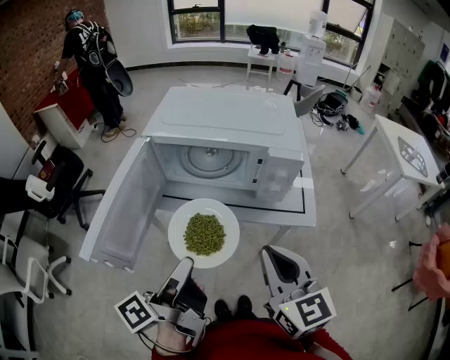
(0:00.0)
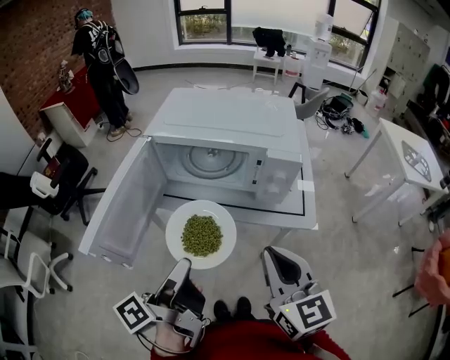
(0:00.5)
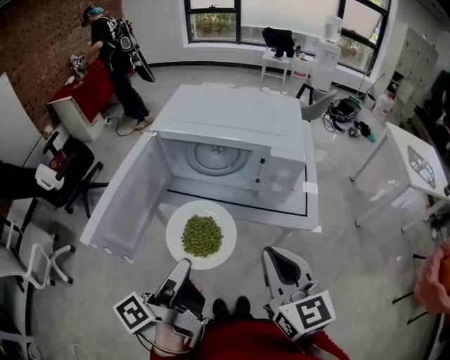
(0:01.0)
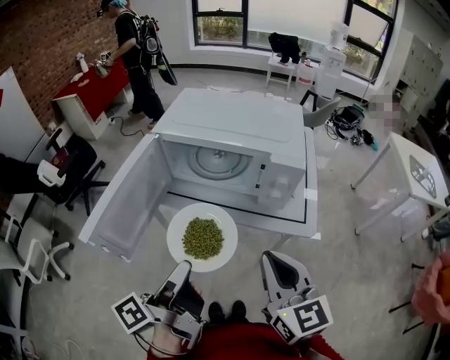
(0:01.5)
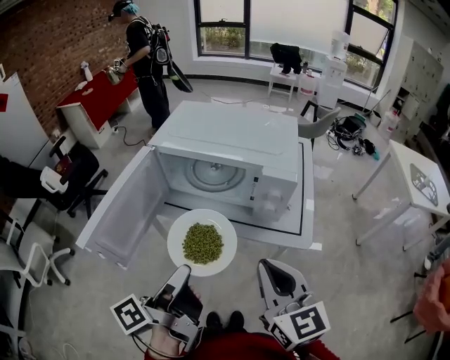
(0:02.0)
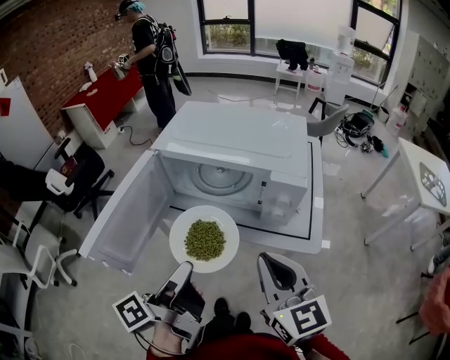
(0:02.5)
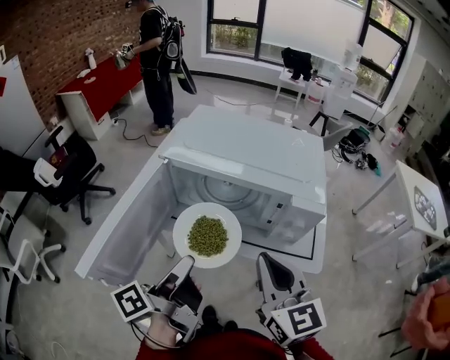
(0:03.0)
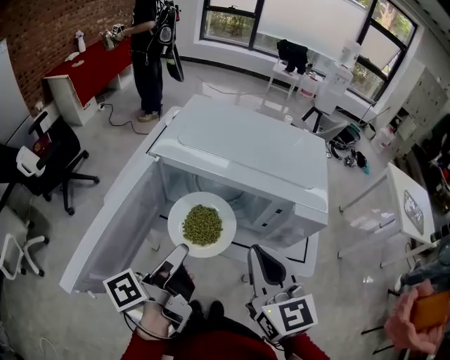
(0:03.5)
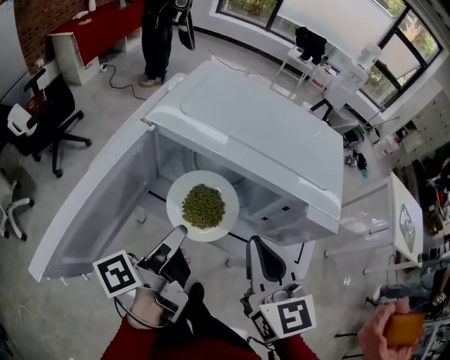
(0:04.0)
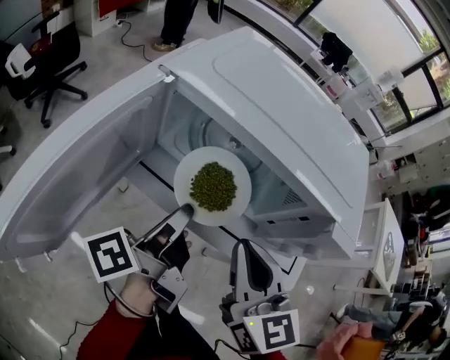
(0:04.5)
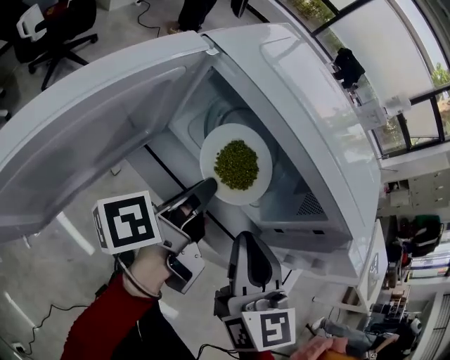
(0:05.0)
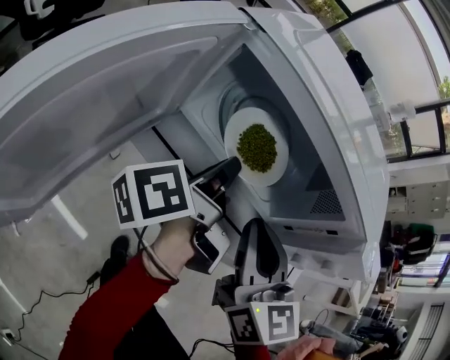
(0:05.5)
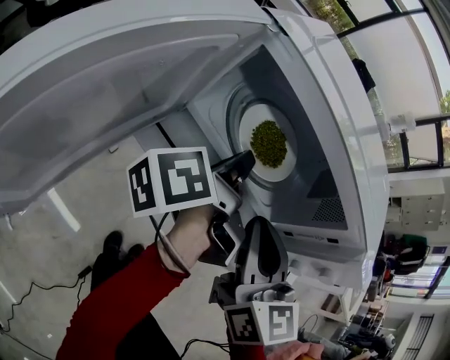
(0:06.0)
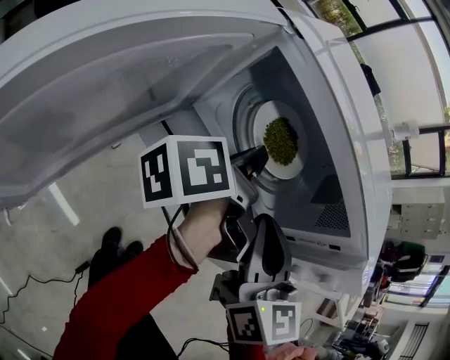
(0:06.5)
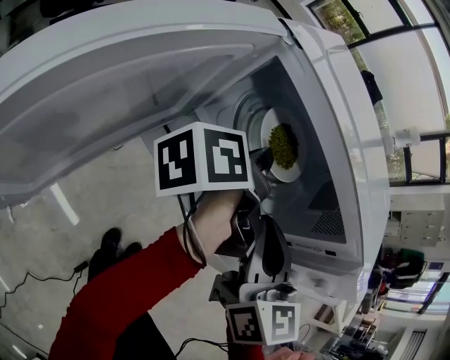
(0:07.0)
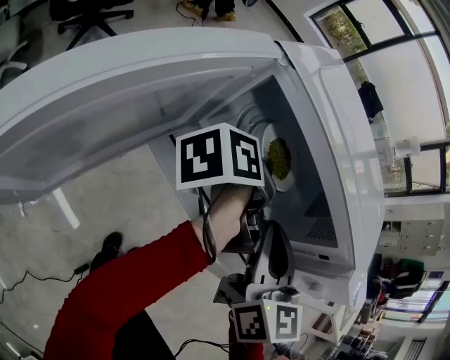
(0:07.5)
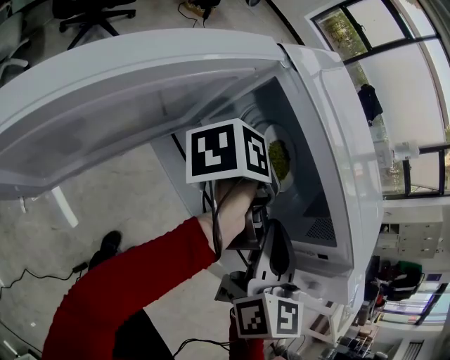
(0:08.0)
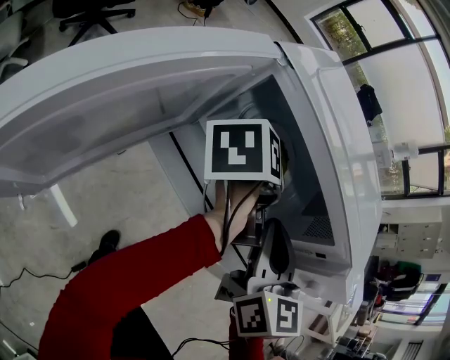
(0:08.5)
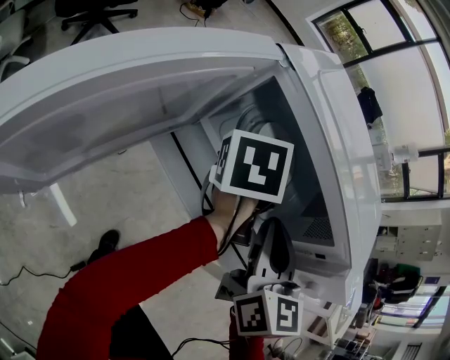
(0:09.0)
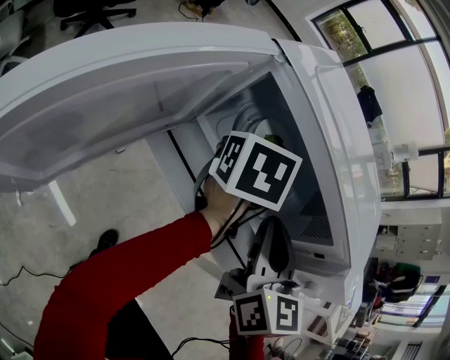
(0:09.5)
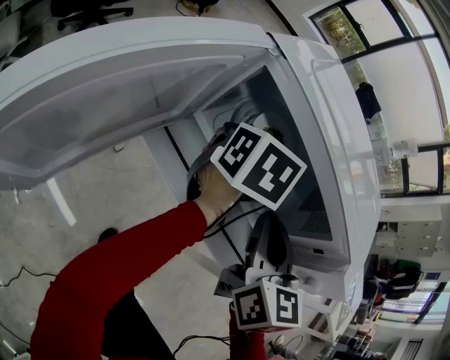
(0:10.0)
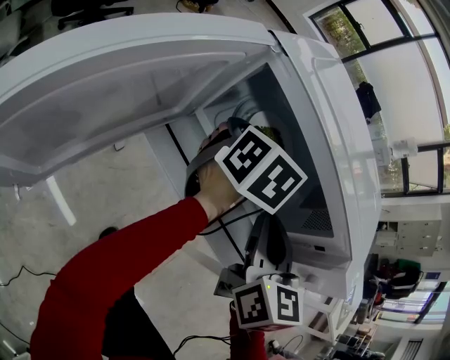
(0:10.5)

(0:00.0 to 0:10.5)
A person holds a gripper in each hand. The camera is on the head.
0:00.0 - 0:02.0: The grippers move only a little.
0:02.0 - 0:04.0: The two grippers go about 15 cm forward.
0:04.0 - 0:06.5: The right gripper heads downward and forward, covering approximately 10 cm. The left gripper goes roughly 15 cm forward and downward.
0:06.5 - 0:08.5: The left gripper changes its angle by some 30 degrees.
0:08.5 - 0:10.5: The left gripper rotates around the line of its fingers by roughly 50 degrees, clockwise from behind, and opens up.

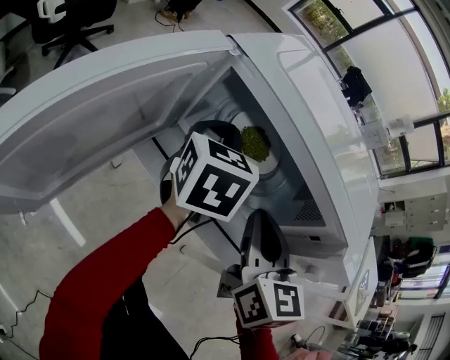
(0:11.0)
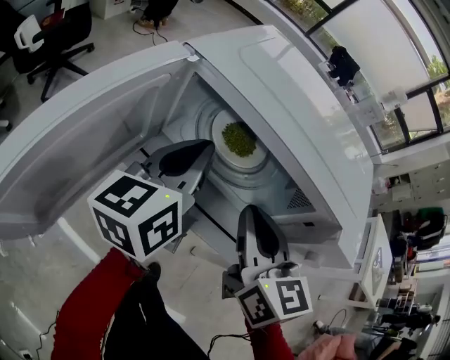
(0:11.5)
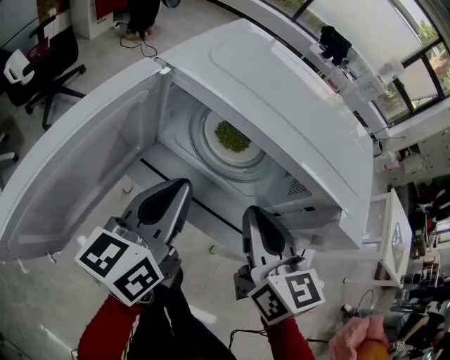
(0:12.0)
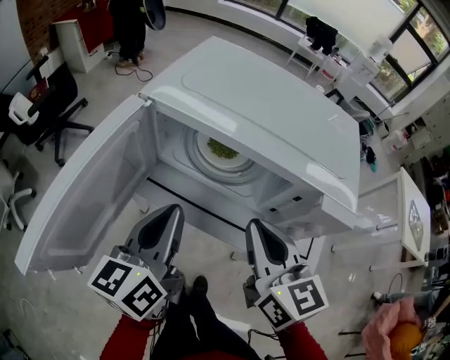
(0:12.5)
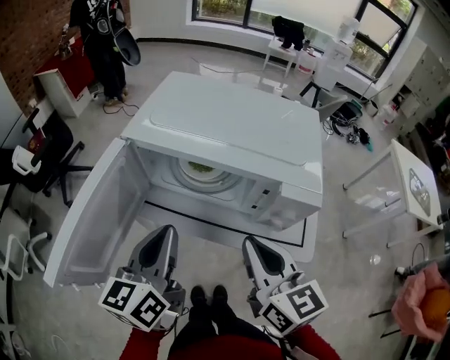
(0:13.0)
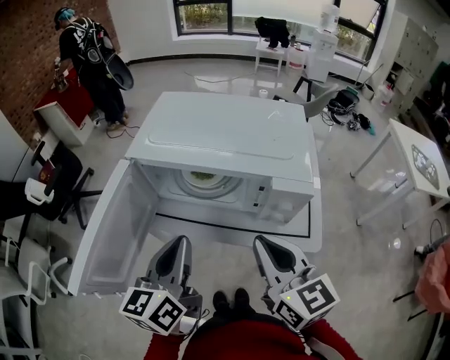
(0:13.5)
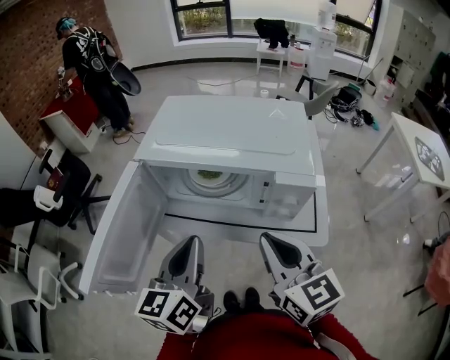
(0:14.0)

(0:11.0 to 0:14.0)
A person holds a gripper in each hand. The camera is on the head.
0:11.0 - 0:12.5: The right gripper travels backward by some 5 cm. Meanwhile the left gripper moves backward, some 20 cm, and swivels approximately 30 degrees.
0:12.5 - 0:14.0: The grippers both shift backward by approximately 5 cm.

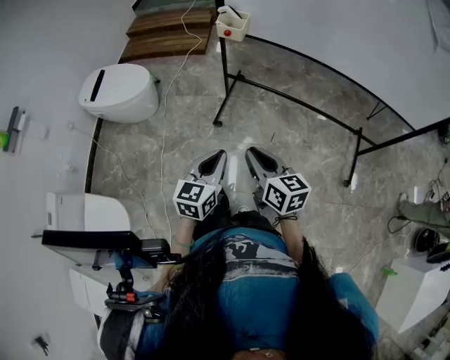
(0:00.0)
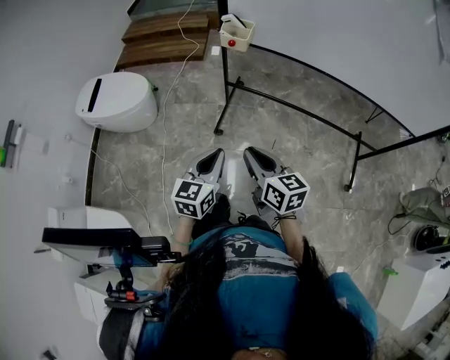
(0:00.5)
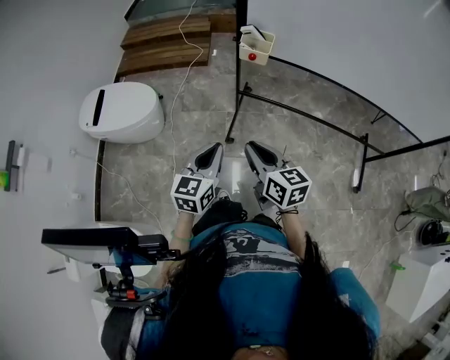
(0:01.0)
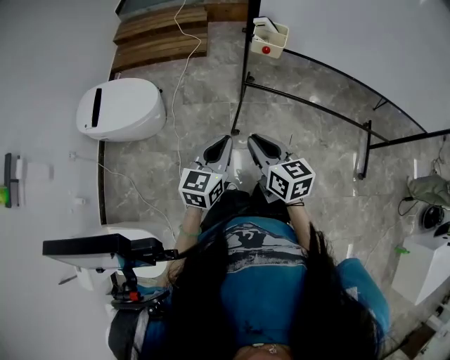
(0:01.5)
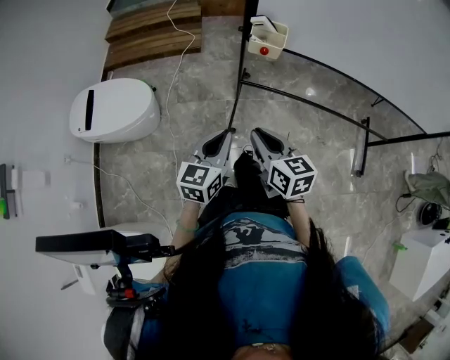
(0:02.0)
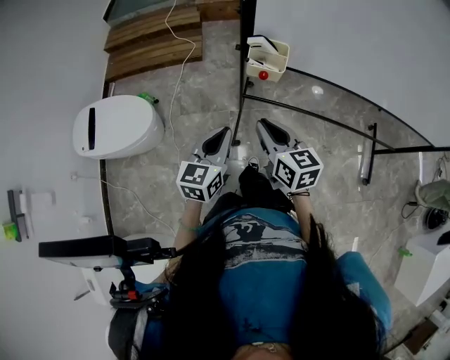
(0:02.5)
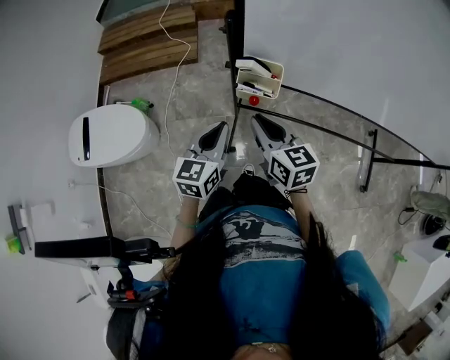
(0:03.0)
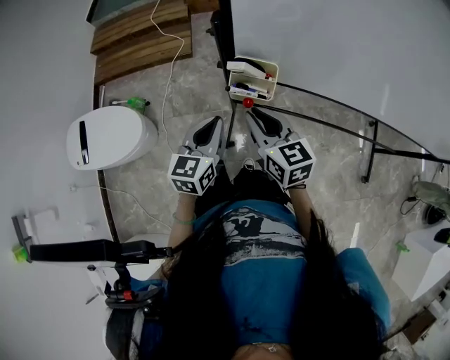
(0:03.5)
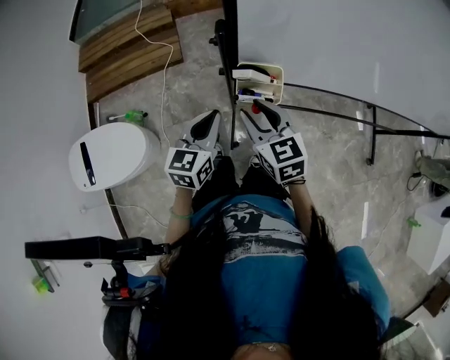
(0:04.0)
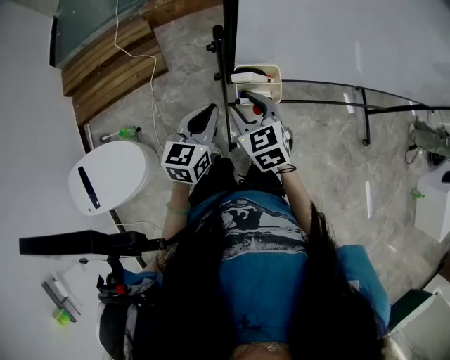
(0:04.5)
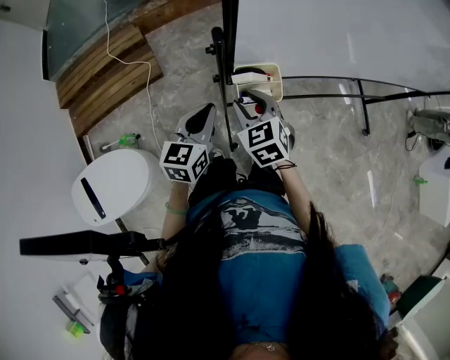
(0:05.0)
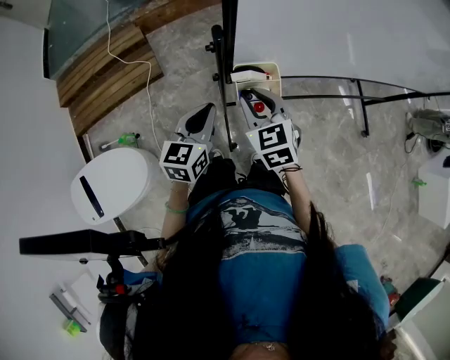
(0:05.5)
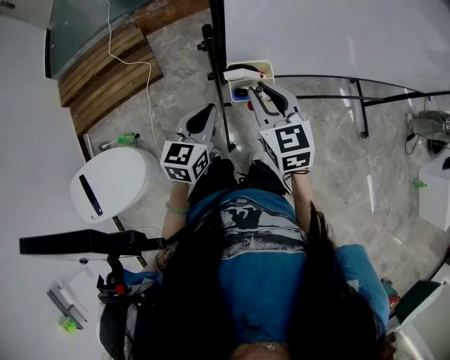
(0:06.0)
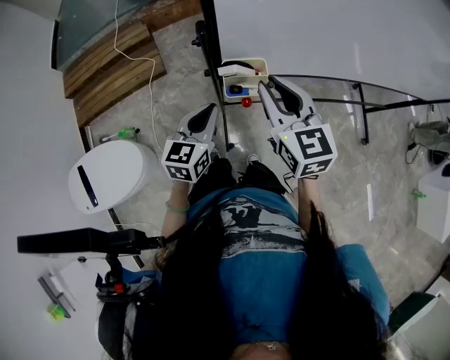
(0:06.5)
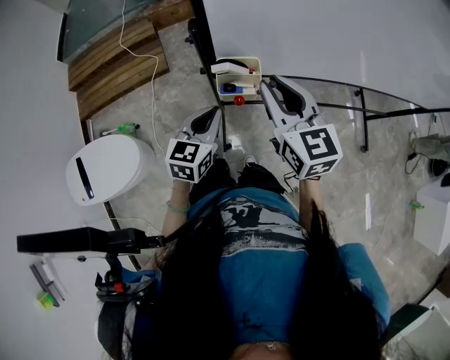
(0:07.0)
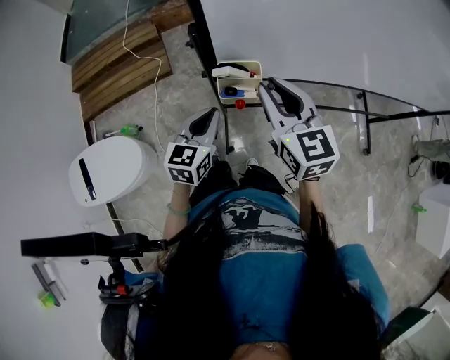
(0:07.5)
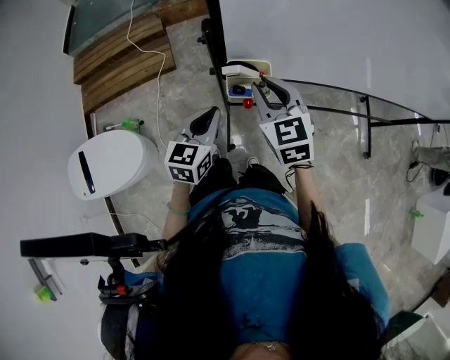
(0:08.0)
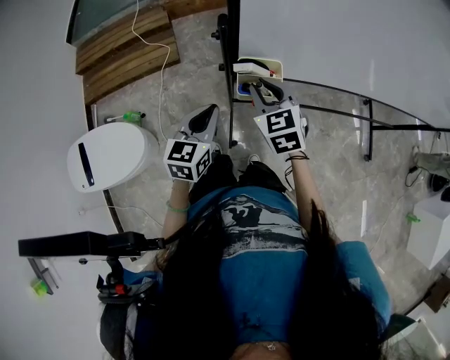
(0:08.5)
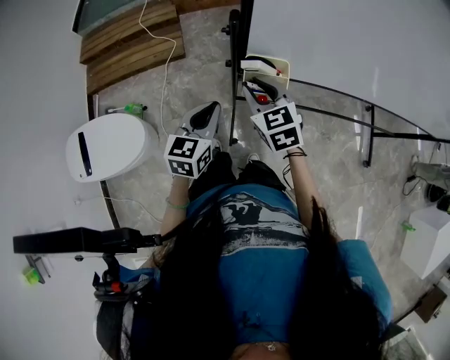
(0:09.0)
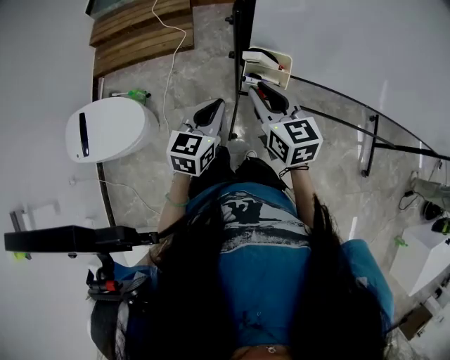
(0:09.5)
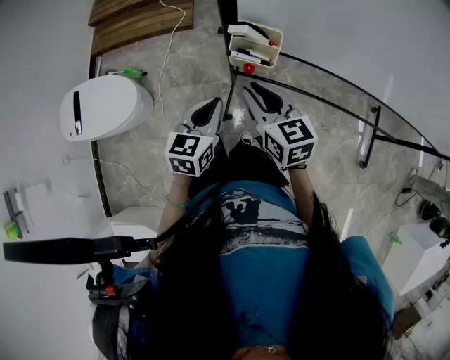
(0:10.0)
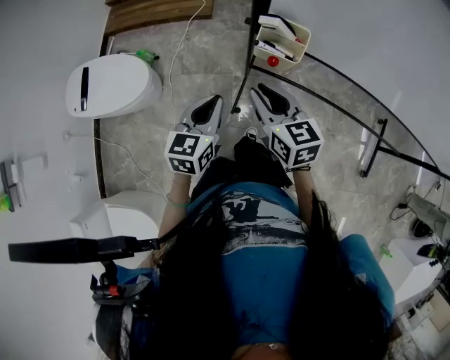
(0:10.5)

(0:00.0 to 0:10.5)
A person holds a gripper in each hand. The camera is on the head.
0:00.0 - 0:02.0: The grippers both shift forward and to the left by about 30 cm.
0:02.0 - 0:04.0: The two grippers go about 35 cm forward. The right gripper opens.
0:04.0 - 0:06.5: The right gripper shifts some 10 cm upward and to the right.
0:06.5 - 0:08.5: The right gripper shifts some 10 cm downward, and swivels roughly 20 degrees.
0:08.5 - 0:10.5: Both grippers move backward, approximately 10 cm. The right gripper rotates about 30 degrees.

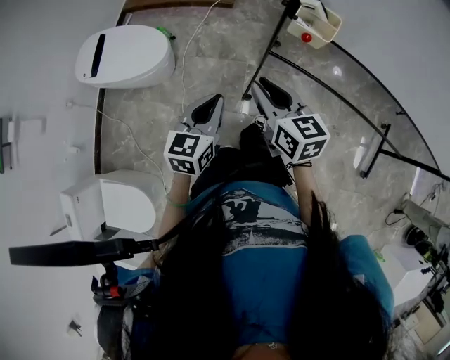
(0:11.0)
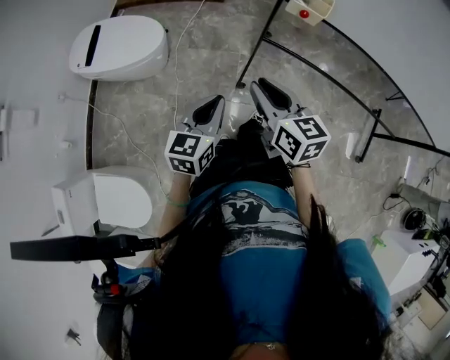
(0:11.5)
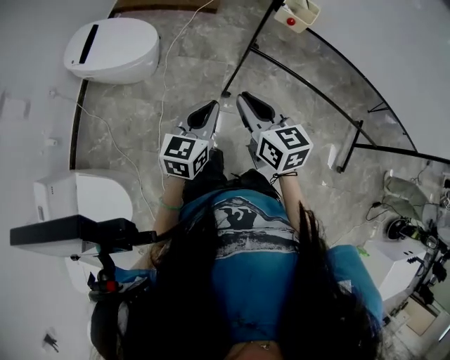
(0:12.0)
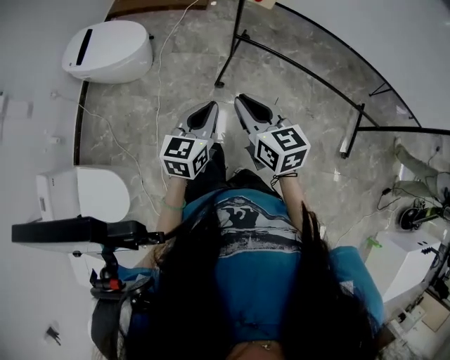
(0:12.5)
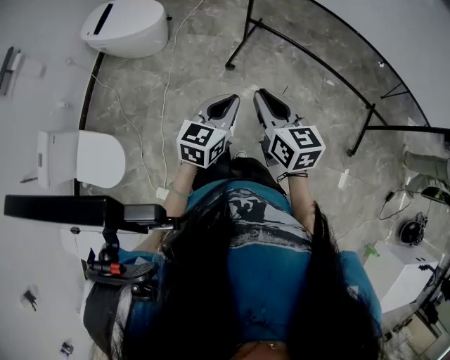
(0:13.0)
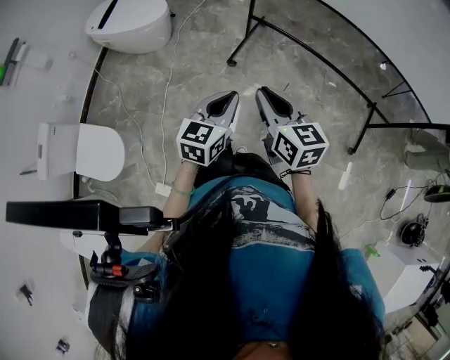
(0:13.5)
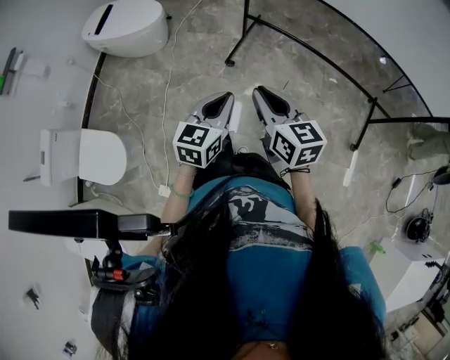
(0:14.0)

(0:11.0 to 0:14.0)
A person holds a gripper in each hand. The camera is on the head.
0:11.0 - 0:12.5: The grippers both shift backward by roughly 25 cm.
0:12.5 - 0:14.0: The grippers both shift backward and to the right by about 15 cm.
